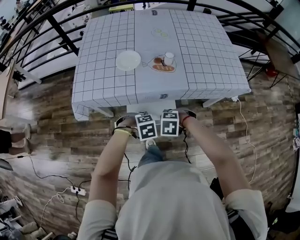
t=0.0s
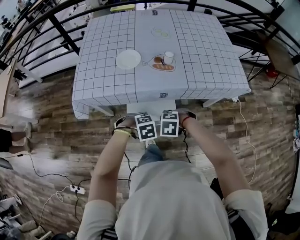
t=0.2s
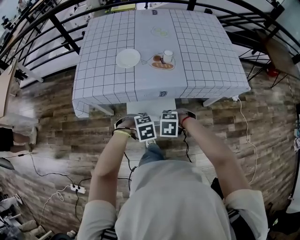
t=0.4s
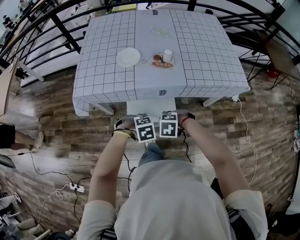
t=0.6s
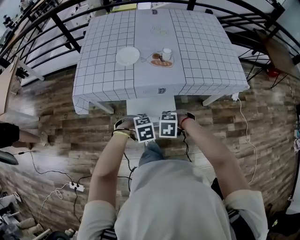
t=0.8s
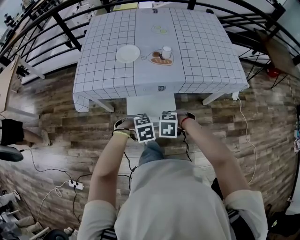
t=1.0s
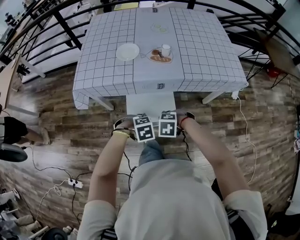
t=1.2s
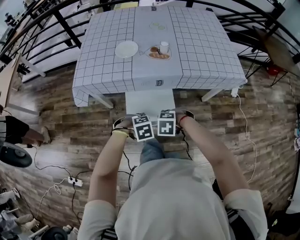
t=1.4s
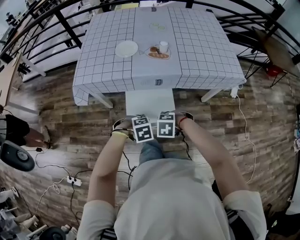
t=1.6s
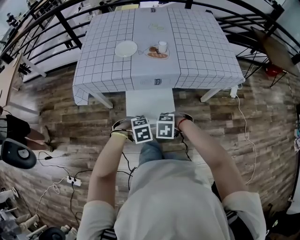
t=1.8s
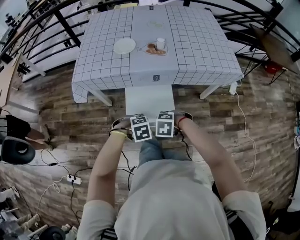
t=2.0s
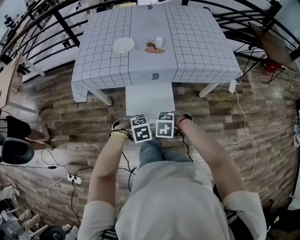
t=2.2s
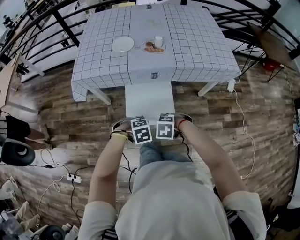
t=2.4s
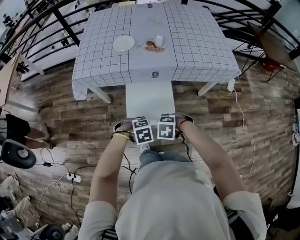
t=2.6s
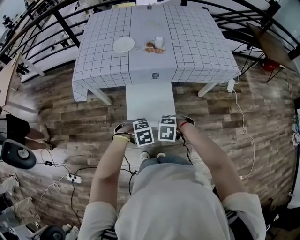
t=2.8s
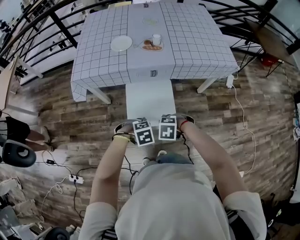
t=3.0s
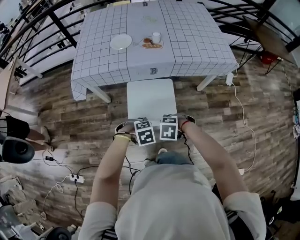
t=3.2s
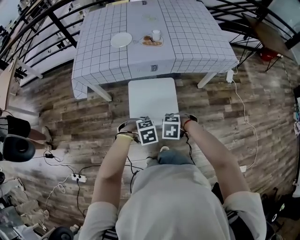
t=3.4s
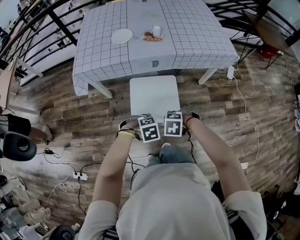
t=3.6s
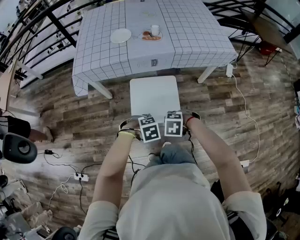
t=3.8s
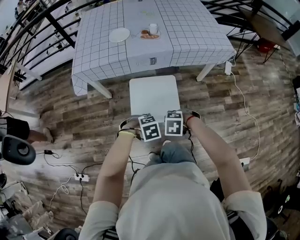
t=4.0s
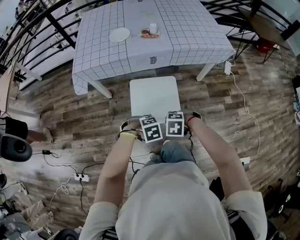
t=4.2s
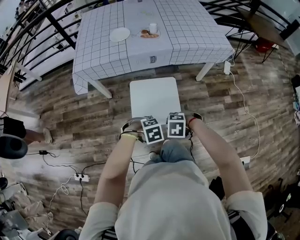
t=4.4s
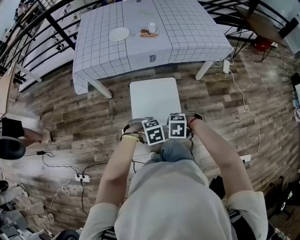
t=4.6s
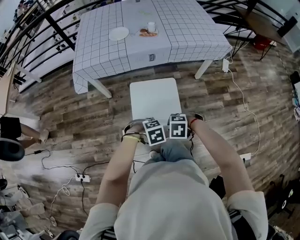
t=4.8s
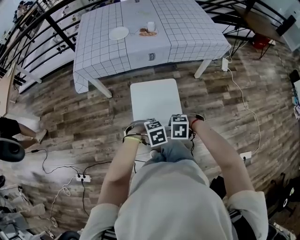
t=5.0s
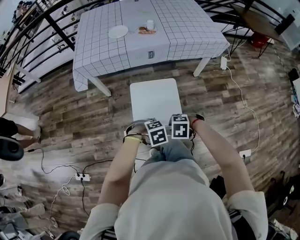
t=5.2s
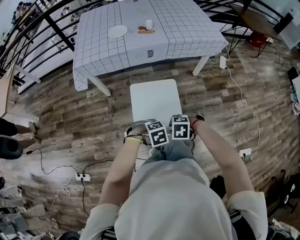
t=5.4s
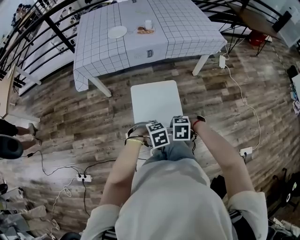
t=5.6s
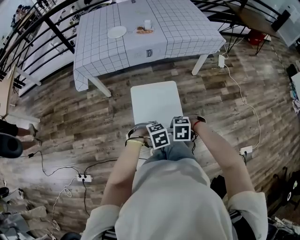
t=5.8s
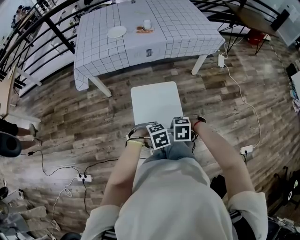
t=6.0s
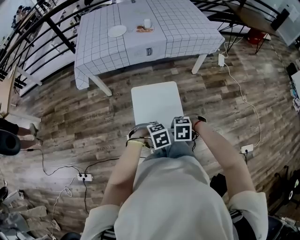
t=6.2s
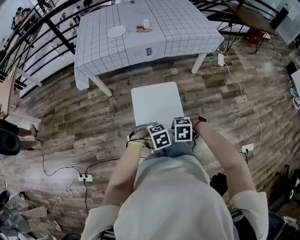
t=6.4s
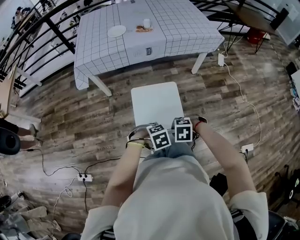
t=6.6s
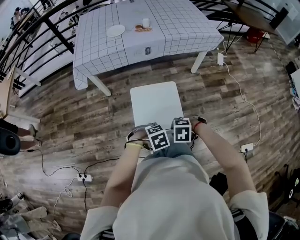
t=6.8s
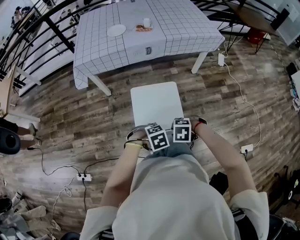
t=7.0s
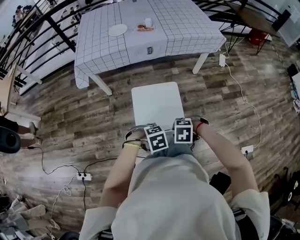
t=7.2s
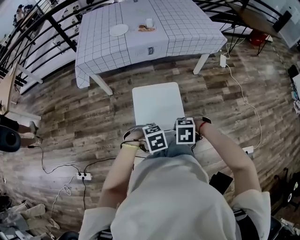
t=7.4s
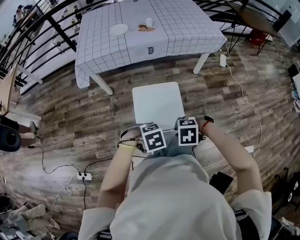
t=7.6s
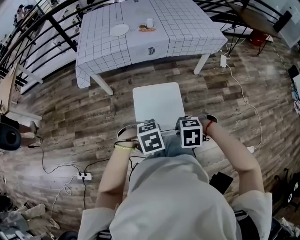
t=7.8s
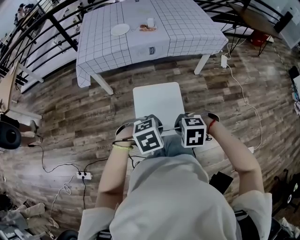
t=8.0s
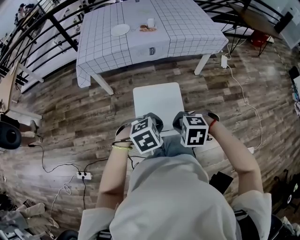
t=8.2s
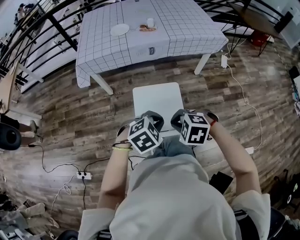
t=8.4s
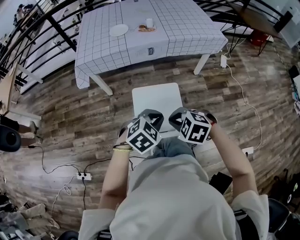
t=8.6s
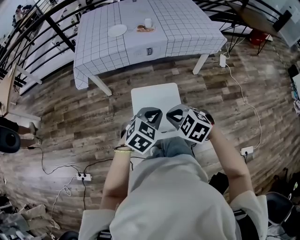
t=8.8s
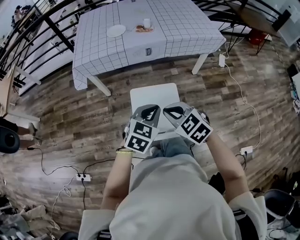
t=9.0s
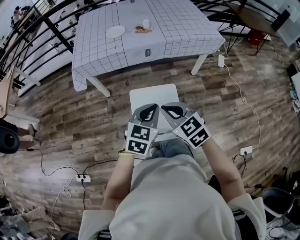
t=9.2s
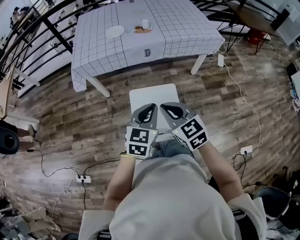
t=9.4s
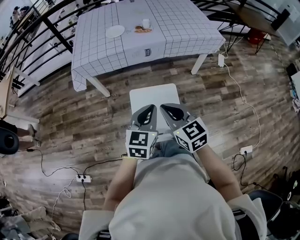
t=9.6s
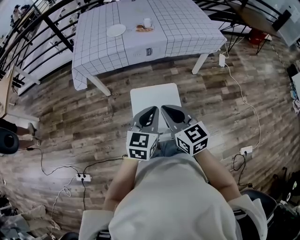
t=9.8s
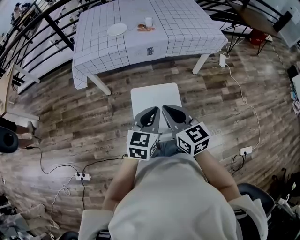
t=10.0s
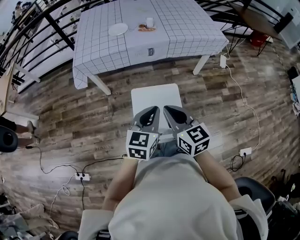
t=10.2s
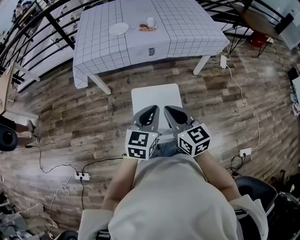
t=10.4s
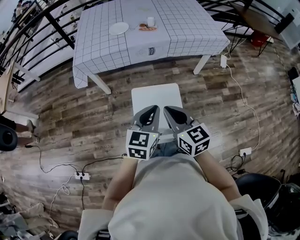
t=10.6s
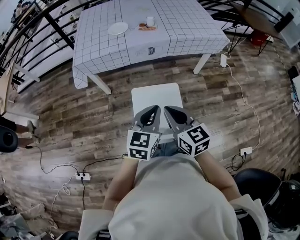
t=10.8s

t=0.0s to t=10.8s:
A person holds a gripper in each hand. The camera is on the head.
t=0.0s to t=1.6s: The left gripper changes place by roughly 10 cm. Meanwhile the right gripper shifts by approximately 10 cm.
t=1.6s to t=3.0s: The left gripper ends up roughly 10 cm from where it was, while the right gripper moves about 10 cm.
t=3.0s to t=4.6s: The right gripper changes place by some 15 cm, while the left gripper shifts by roughly 10 cm.
t=4.6s to t=6.2s: The left gripper ends up about 10 cm from where it was, while the right gripper changes place by roughly 10 cm.
t=6.2s to t=7.8s: Both grippers move upward, some 10 cm.
t=7.8s to t=9.2s: The right gripper moves roughly 15 cm, and tips its fingers upward by roughly 50 degrees. Meanwhile the left gripper changes place by roughly 15 cm, and points its fingers about 40 degrees further upward.
t=9.2s to t=10.8s: The right gripper changes its angle by roughly 30 degrees.

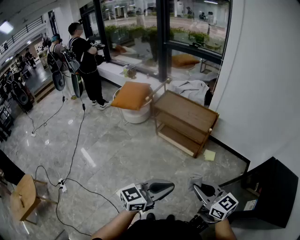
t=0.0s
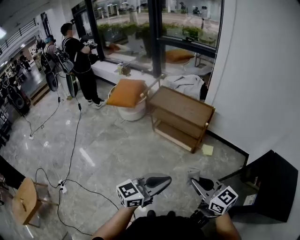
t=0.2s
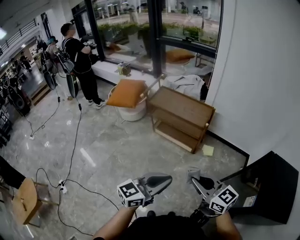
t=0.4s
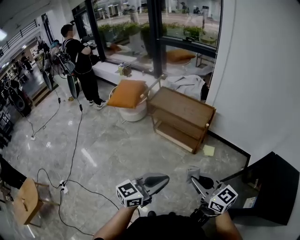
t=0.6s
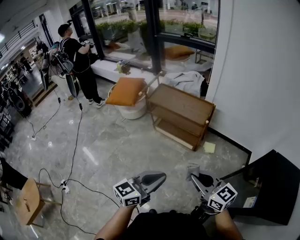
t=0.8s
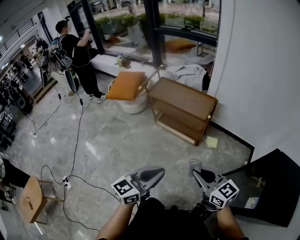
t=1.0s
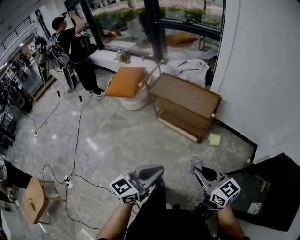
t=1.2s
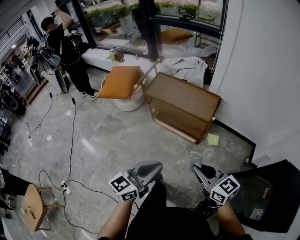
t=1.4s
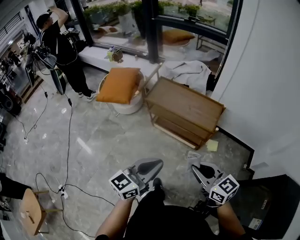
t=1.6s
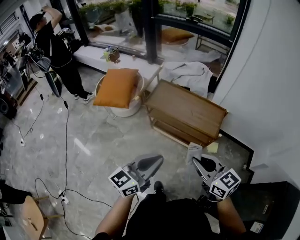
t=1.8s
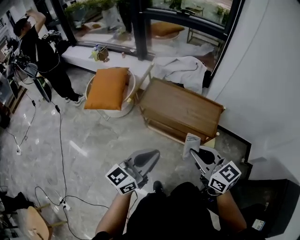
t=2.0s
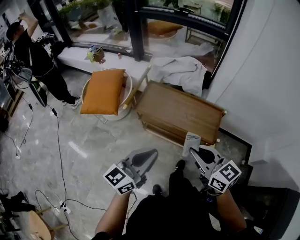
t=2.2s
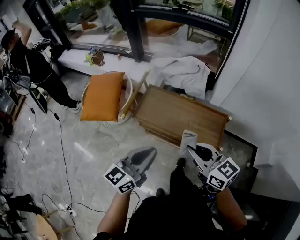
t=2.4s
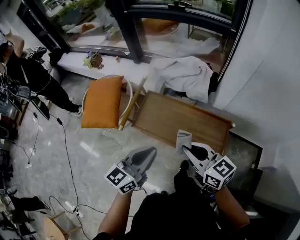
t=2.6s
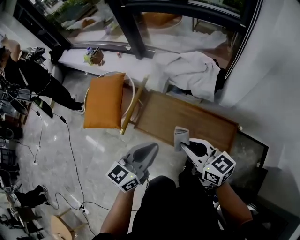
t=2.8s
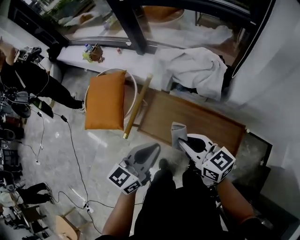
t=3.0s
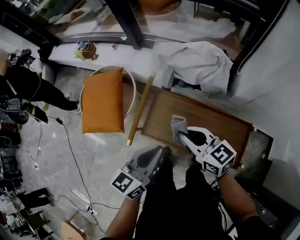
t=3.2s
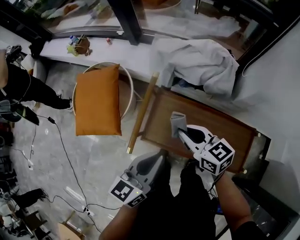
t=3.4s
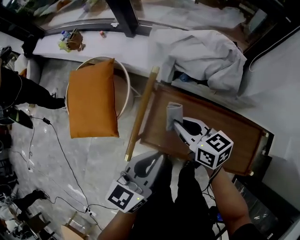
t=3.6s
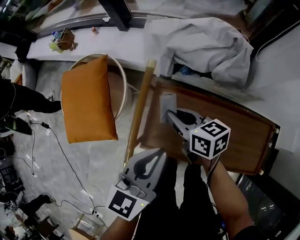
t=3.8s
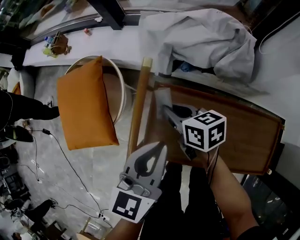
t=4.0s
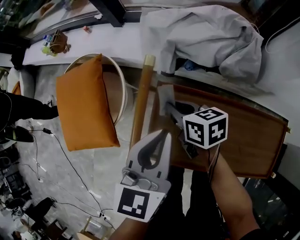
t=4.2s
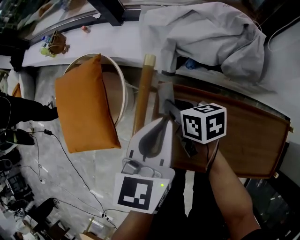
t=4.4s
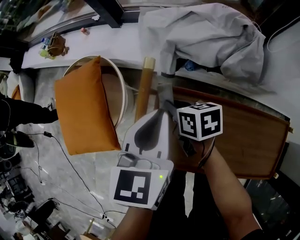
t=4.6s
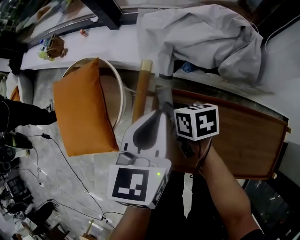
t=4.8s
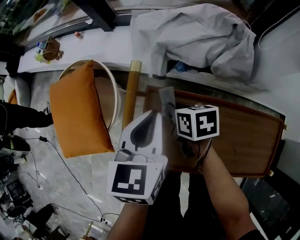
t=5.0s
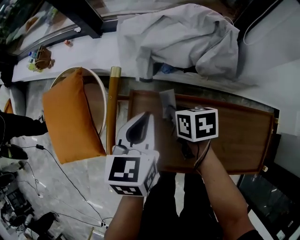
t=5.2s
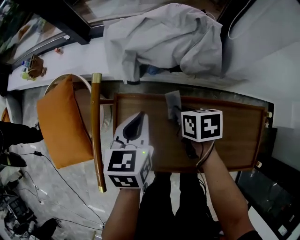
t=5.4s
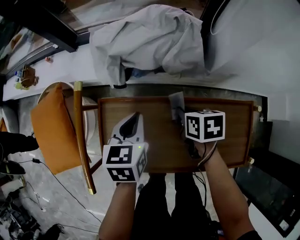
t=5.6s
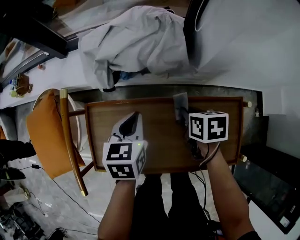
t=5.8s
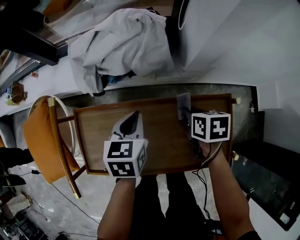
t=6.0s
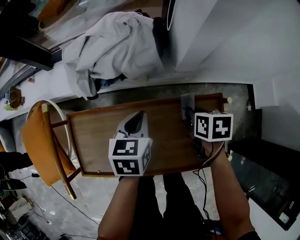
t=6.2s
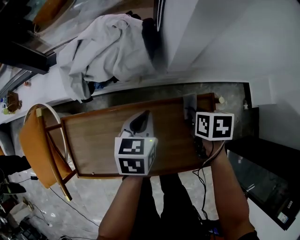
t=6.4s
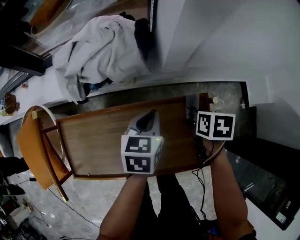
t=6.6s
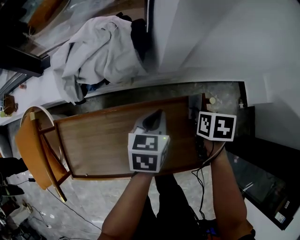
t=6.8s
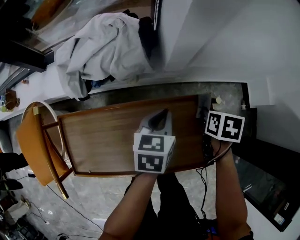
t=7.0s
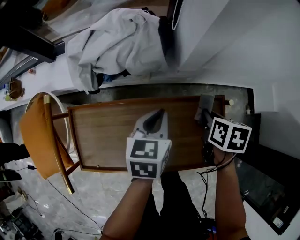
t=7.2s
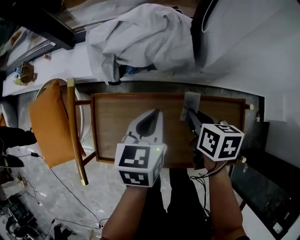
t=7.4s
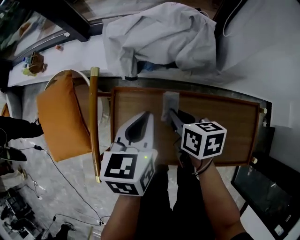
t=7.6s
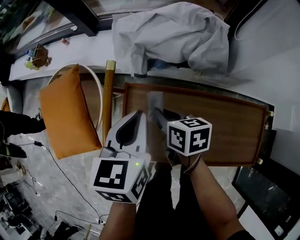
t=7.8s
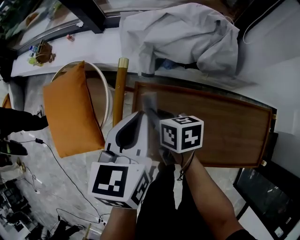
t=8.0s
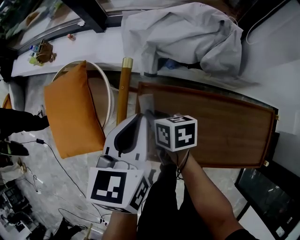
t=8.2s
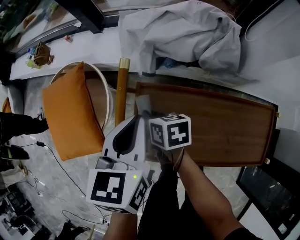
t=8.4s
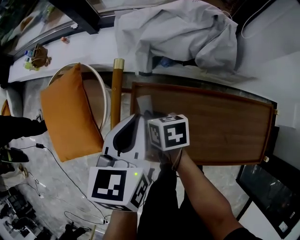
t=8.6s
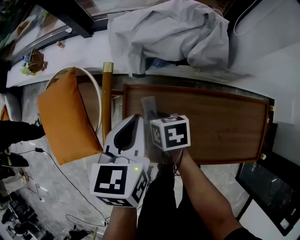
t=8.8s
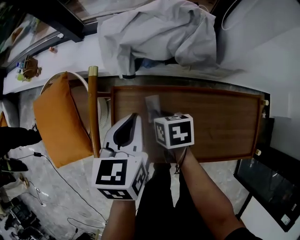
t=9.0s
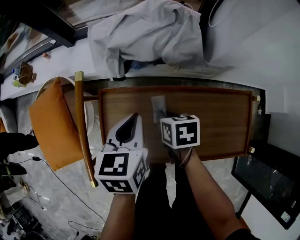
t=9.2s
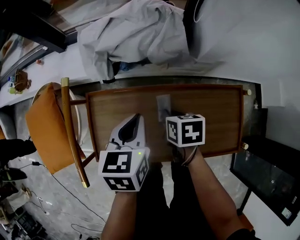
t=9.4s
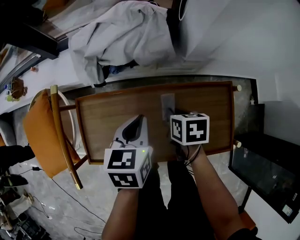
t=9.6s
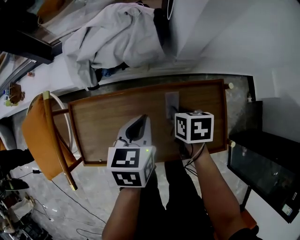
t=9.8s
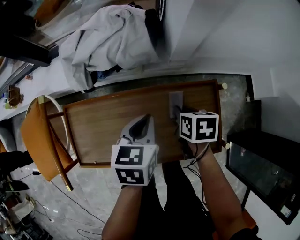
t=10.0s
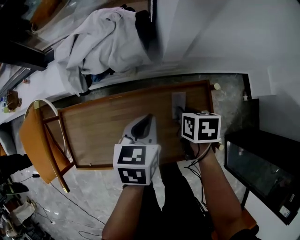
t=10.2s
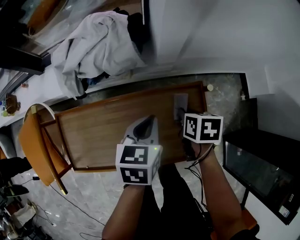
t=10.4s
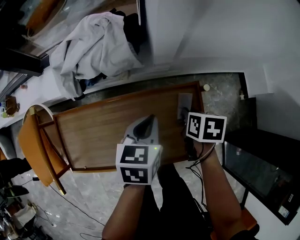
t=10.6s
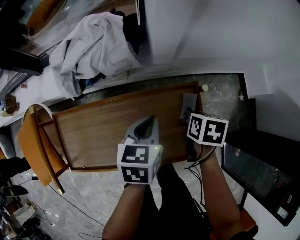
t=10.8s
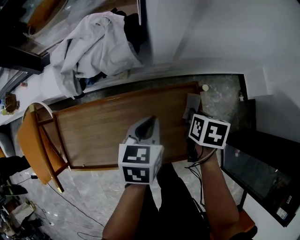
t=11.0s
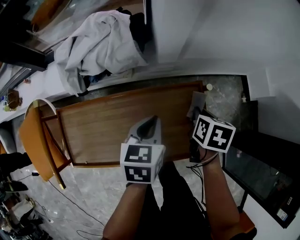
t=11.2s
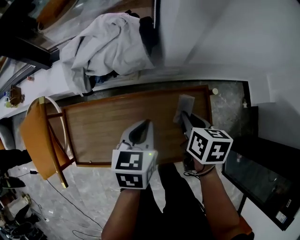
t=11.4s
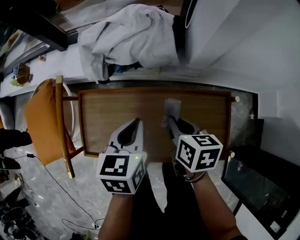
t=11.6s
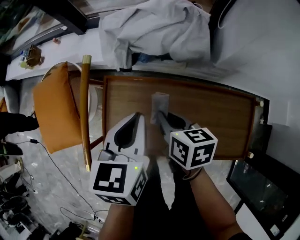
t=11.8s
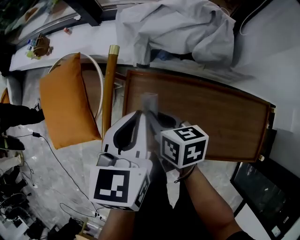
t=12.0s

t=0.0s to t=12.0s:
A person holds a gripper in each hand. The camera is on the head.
t=0.0s to t=1.6s: Both grippers travel together forward, approximately 25 cm.
t=1.6s to t=3.0s: The pair of grippers is taken forward, roughly 50 cm.
t=3.0s to t=4.4s: The left gripper goes roughly 30 cm forward and downward, and changes its angle by approximately 20 degrees. Meanwhile the right gripper heads downward and forward, covering roughly 40 cm, and swivels about 40 degrees.
t=4.4s to t=6.0s: The right gripper changes place by about 40 cm, and swivels some 30 degrees. The left gripper shifts by approximately 25 cm.
t=6.0s to t=7.6s: The left gripper shifts by roughly 15 cm, while the right gripper ends up roughly 20 cm from where it was.
t=7.6s to t=9.0s: The right gripper shifts about 10 cm to the left and downward.
t=9.0s to t=10.4s: The right gripper ends up about 40 cm from where it was, and changes its angle by about 20 degrees; the left gripper moves approximately 30 cm.
t=10.4s to t=12.0s: The left gripper shifts by about 35 cm, and changes its angle by approximately 30 degrees. The right gripper shifts by roughly 40 cm, and turns by roughly 40 degrees.

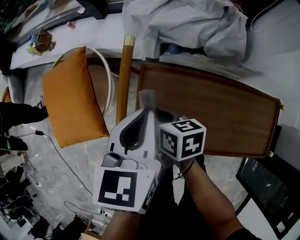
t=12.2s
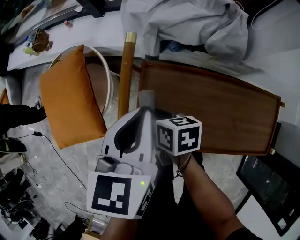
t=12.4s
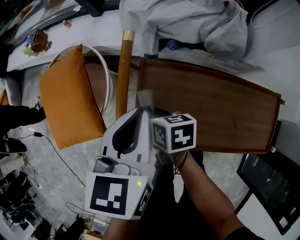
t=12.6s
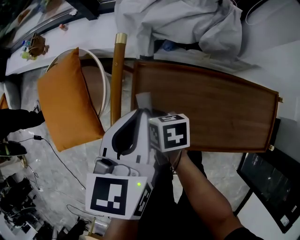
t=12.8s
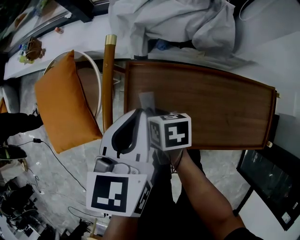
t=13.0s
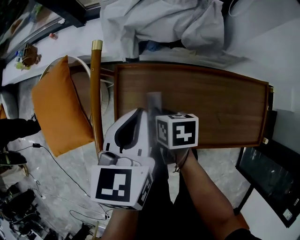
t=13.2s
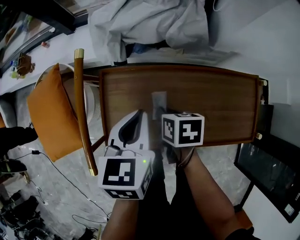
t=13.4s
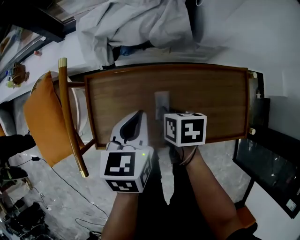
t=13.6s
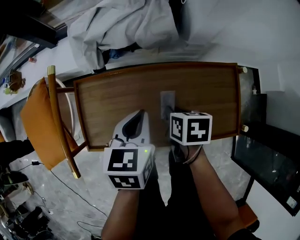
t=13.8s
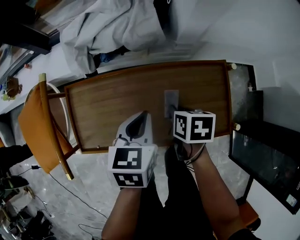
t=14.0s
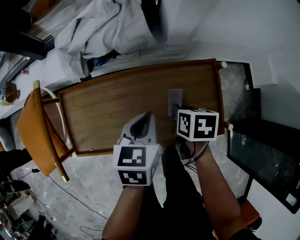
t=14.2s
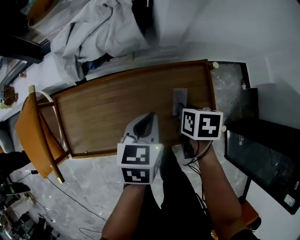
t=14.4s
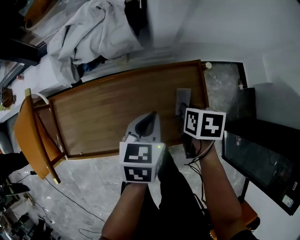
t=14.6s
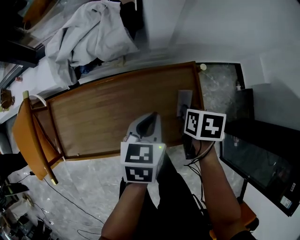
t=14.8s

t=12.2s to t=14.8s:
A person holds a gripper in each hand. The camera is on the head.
t=12.2s to t=13.4s: The right gripper moves to the right and backward, about 15 cm, and changes its angle by roughly 20 degrees. Meanwhile the left gripper is displaced to the right and downward by about 10 cm.
t=13.4s to t=14.8s: The right gripper changes place by about 35 cm, and turns by some 20 degrees. Meanwhile the left gripper moves some 30 cm.
